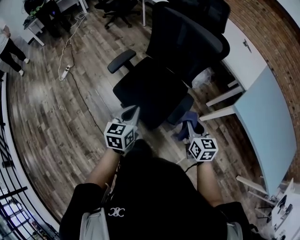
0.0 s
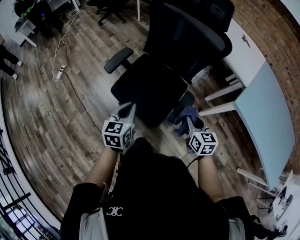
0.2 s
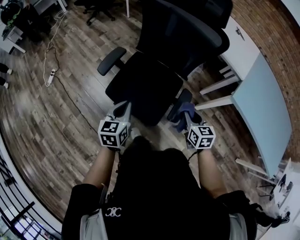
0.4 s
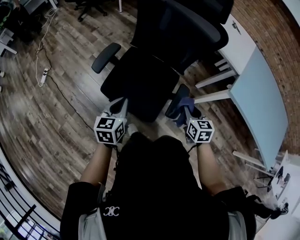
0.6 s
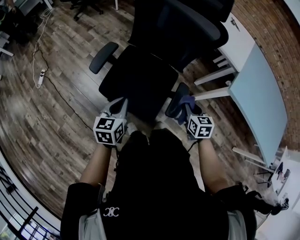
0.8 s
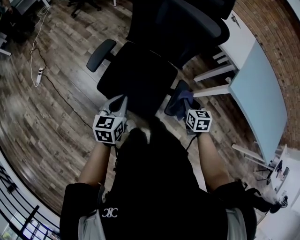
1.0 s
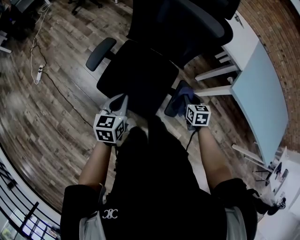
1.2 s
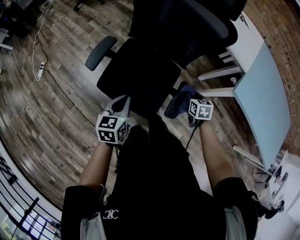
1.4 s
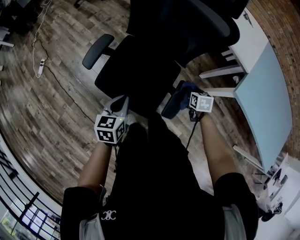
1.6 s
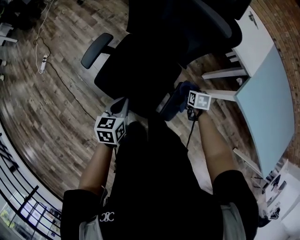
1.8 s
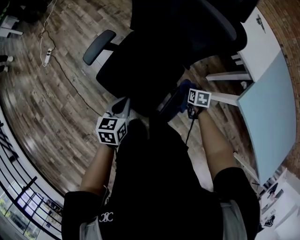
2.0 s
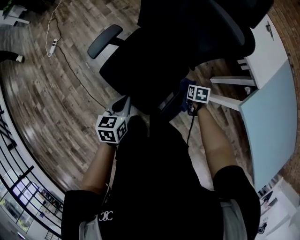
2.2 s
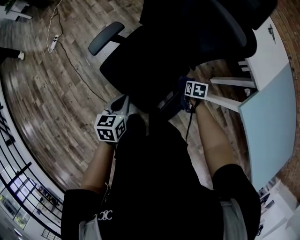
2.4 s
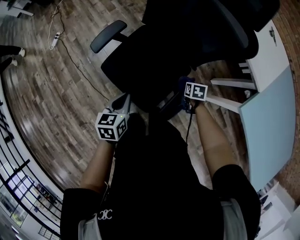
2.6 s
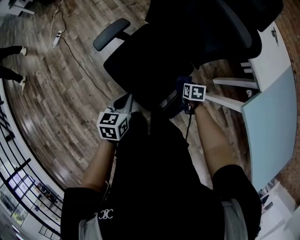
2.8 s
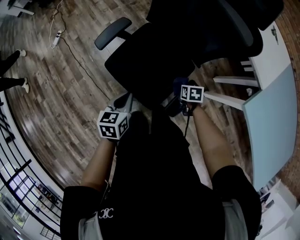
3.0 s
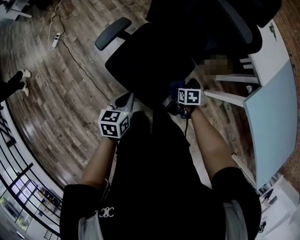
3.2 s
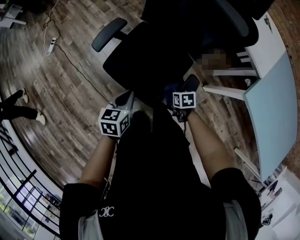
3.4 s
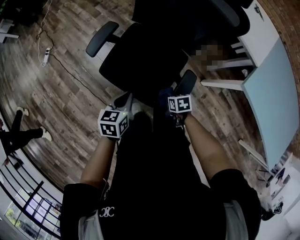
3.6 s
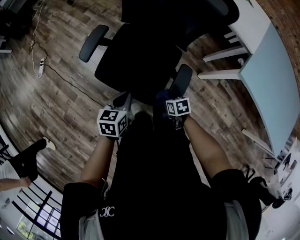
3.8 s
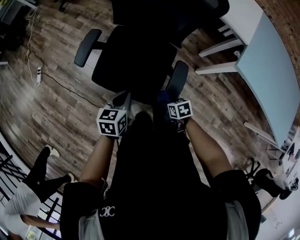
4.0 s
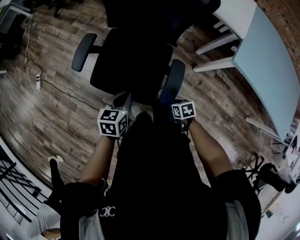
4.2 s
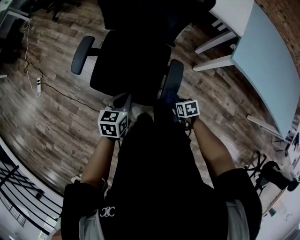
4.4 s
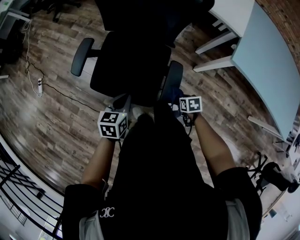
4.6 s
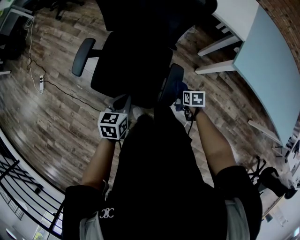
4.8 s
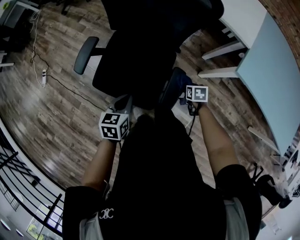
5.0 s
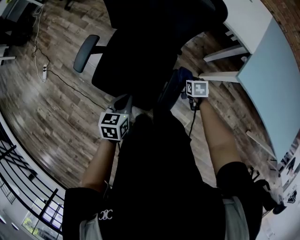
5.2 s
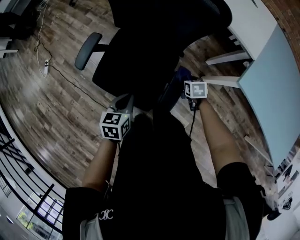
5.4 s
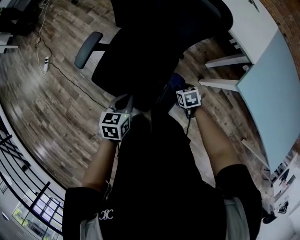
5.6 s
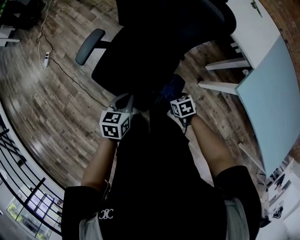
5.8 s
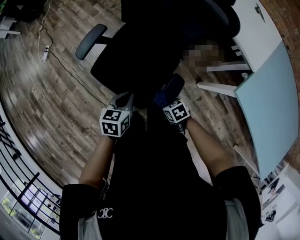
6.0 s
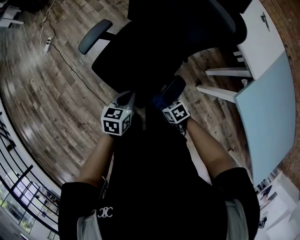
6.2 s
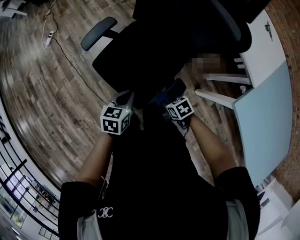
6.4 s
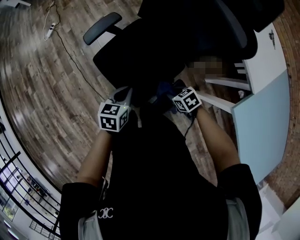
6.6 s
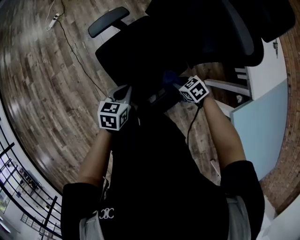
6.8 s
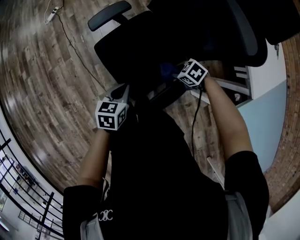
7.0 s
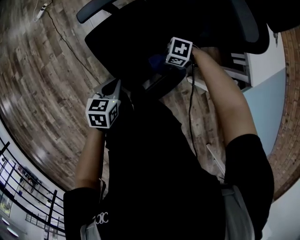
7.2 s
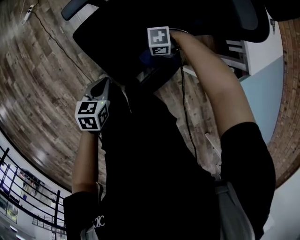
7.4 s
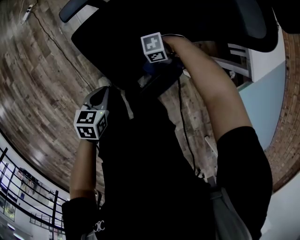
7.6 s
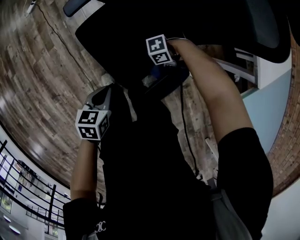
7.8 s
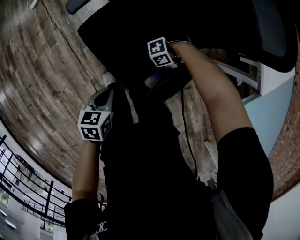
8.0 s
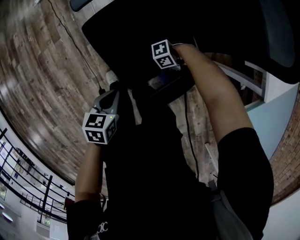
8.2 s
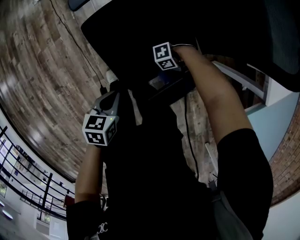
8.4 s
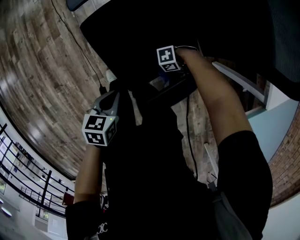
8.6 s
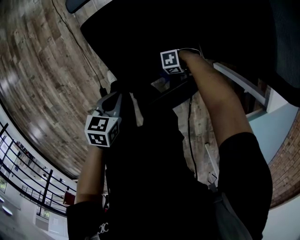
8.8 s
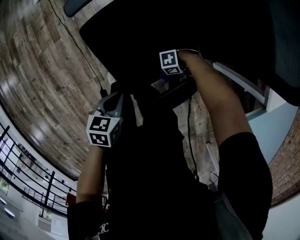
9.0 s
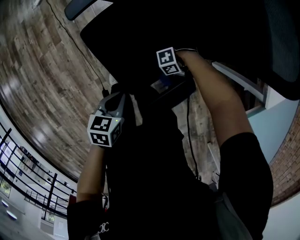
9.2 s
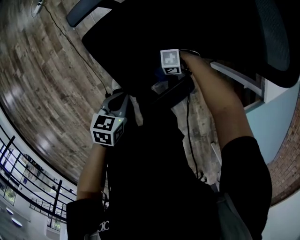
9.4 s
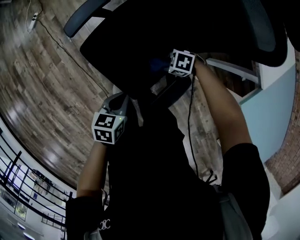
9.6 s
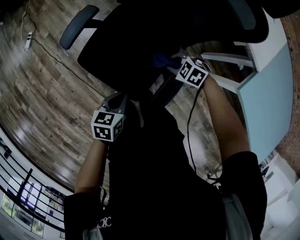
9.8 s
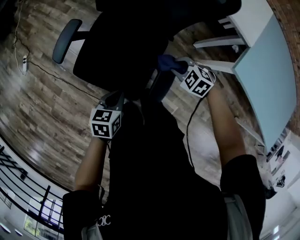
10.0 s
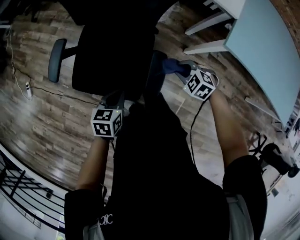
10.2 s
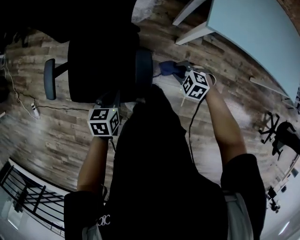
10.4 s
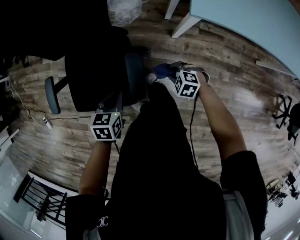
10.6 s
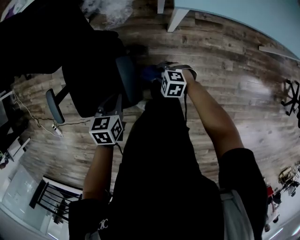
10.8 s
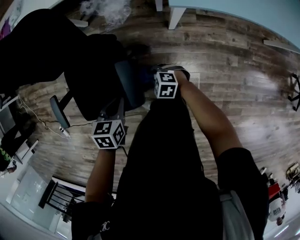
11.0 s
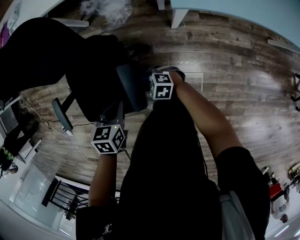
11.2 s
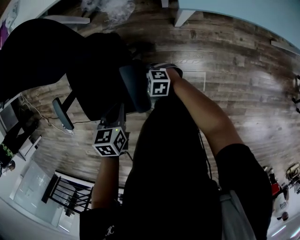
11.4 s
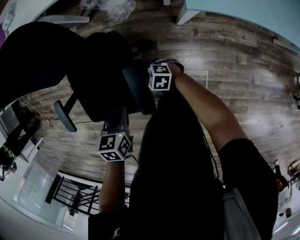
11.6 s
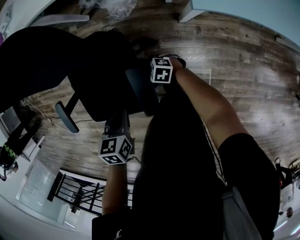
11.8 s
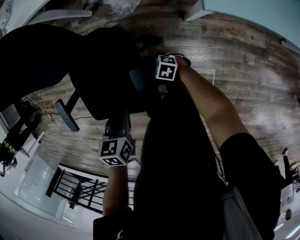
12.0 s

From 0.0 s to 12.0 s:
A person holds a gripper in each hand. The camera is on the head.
From 0.0 s to 1.6 s: The right gripper goes about 25 cm downward and forward, and angles its fingers downward, by about 30 degrees. The left gripper moves forward and downward, roughly 10 cm.
From 1.6 s to 3.0 s: The right gripper moves to the left and downward, some 10 cm.
From 3.0 s to 4.4 s: The right gripper travels backward by about 20 cm, while the left gripper turns by roughly 30 degrees.
From 4.4 s to 6.0 s: The right gripper changes its angle by some 30 degrees.
From 6.0 s to 7.6 s: The right gripper changes its angle by approximately 90 degrees; the left gripper moves some 10 cm.
From 7.6 s to 9.0 s: The right gripper moves downward, some 15 cm. Meanwhile the left gripper heads downward, covering about 5 cm.
From 9.0 s to 10.4 s: The right gripper travels upward by roughly 20 cm, and turns by some 100 degrees. Meanwhile the left gripper travels upward by roughly 10 cm, and twists roughly 40 degrees clockwise, seen from behind.
From 10.4 s to 12.0 s: The right gripper goes approximately 20 cm downward, forward and to the left, and changes its angle by roughly 30 degrees.

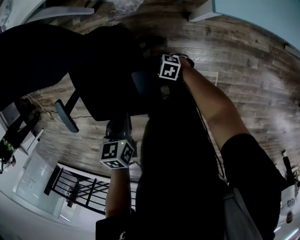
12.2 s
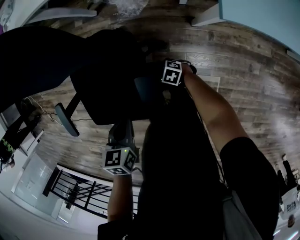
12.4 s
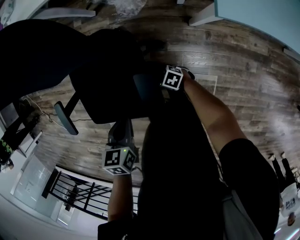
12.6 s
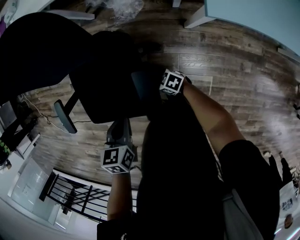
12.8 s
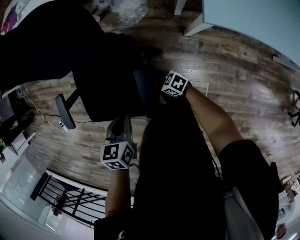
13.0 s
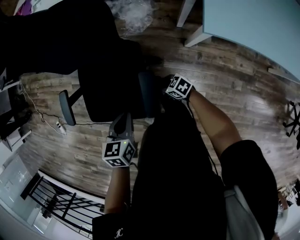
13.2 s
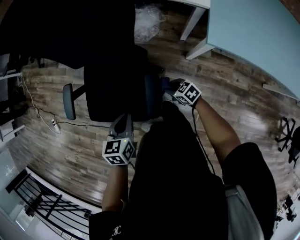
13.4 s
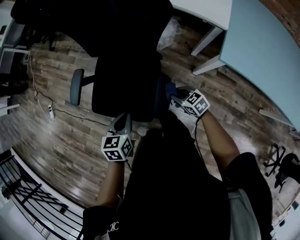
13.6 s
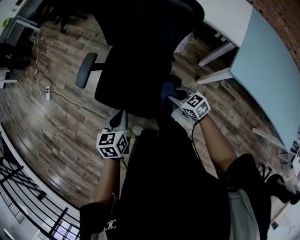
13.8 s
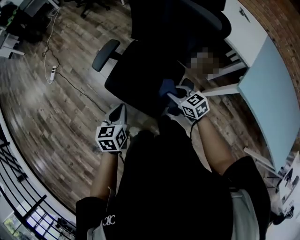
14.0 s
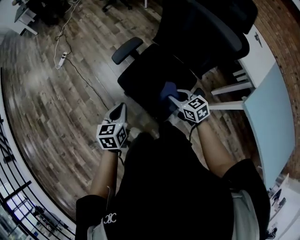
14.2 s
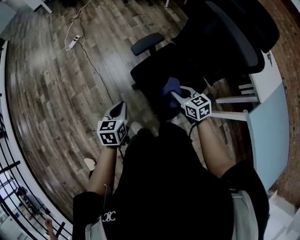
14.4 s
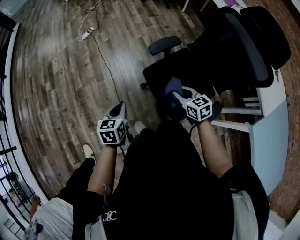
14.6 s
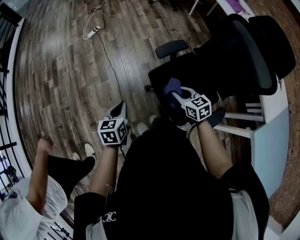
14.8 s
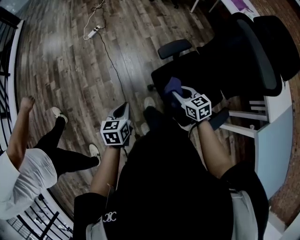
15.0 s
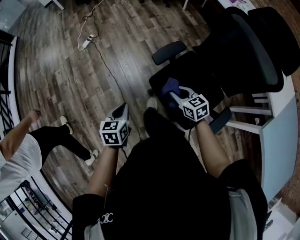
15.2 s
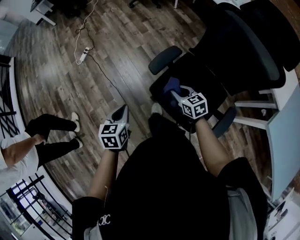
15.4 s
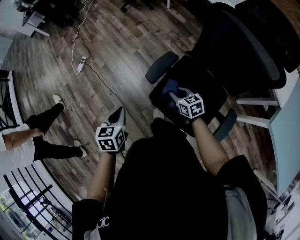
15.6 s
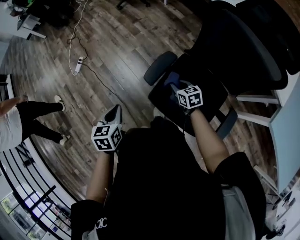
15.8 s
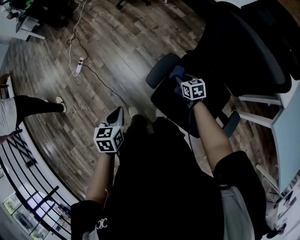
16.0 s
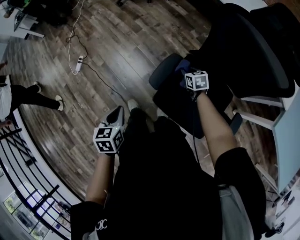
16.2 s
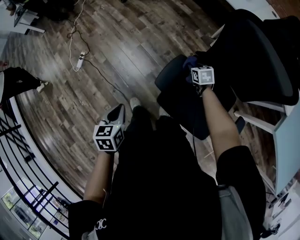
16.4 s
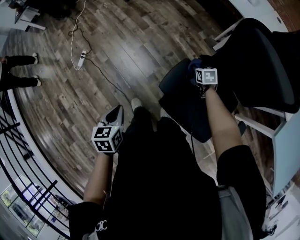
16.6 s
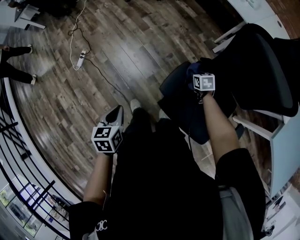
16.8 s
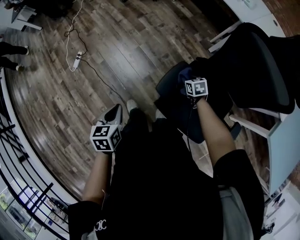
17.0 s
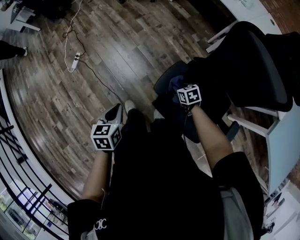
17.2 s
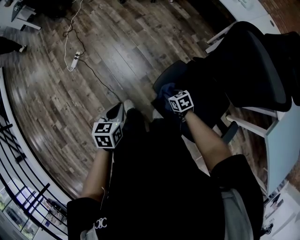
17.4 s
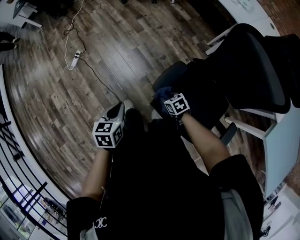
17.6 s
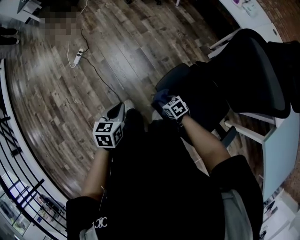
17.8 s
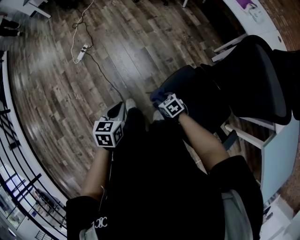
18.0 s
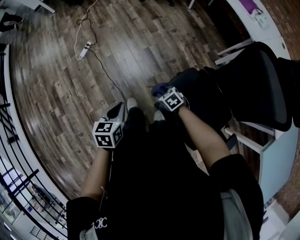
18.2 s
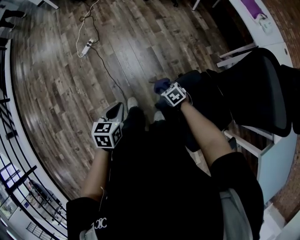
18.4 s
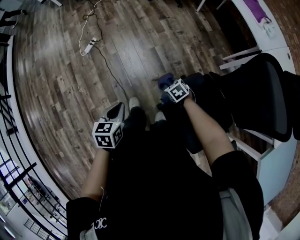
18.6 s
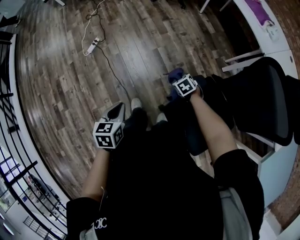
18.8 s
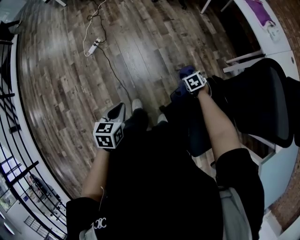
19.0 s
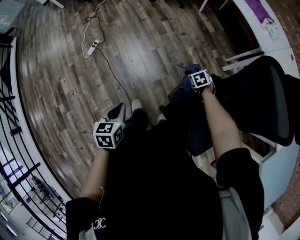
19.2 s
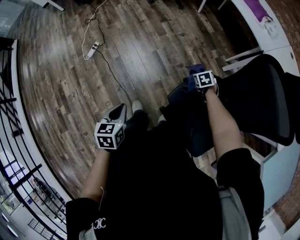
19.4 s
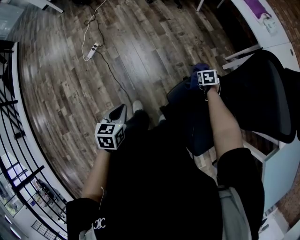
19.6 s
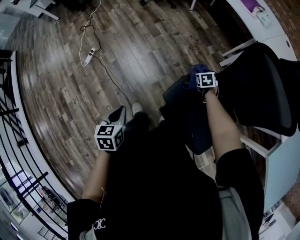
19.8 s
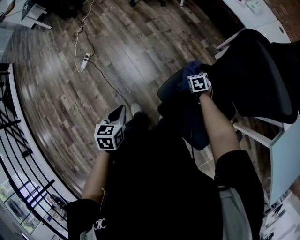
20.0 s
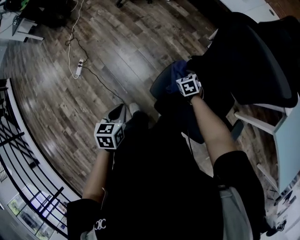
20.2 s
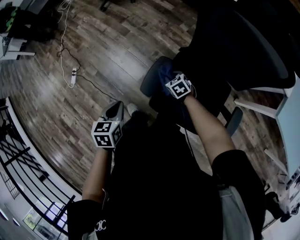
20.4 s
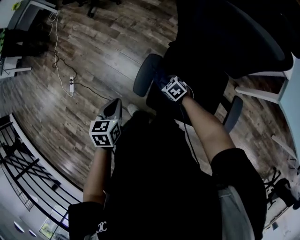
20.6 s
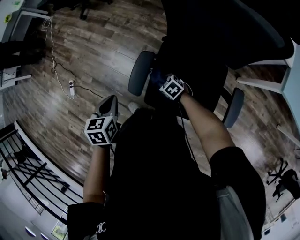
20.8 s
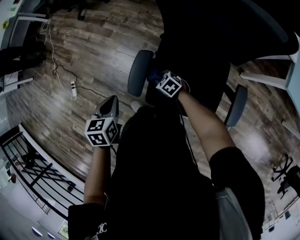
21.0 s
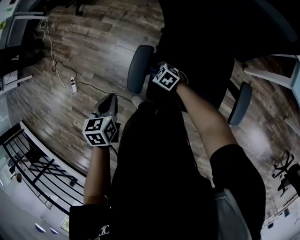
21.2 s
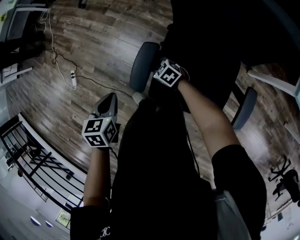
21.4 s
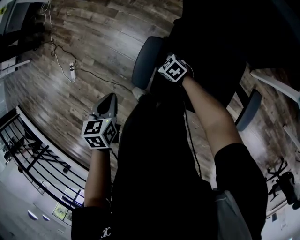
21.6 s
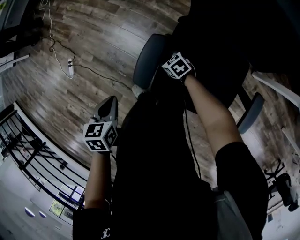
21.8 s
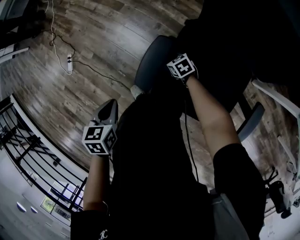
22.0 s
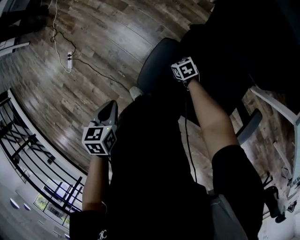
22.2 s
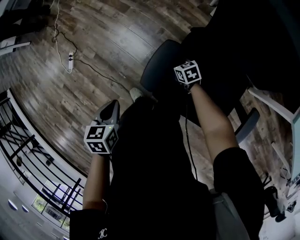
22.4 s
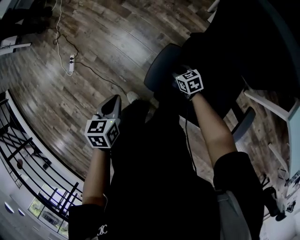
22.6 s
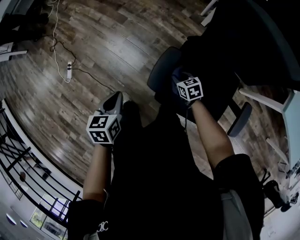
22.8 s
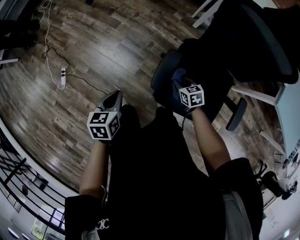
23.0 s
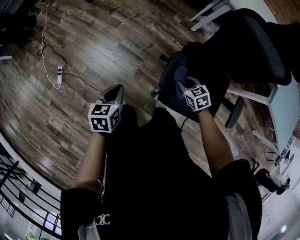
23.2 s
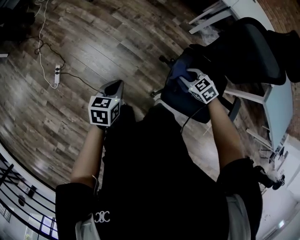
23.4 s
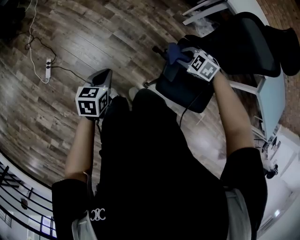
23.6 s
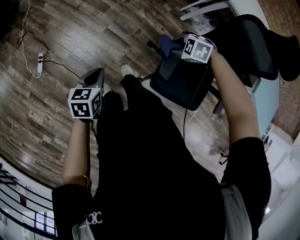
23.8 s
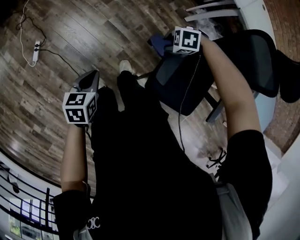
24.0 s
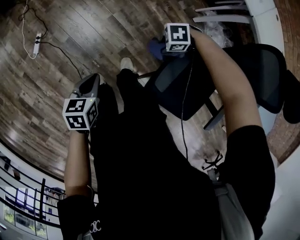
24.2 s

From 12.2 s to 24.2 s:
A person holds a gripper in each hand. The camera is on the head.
From 12.2 s to 13.8 s: The right gripper travels upward by roughly 30 cm, while the left gripper shifts some 15 cm to the left and upward, and swivels some 30 degrees.
From 13.8 s to 15.2 s: The right gripper ends up roughly 35 cm from where it was. Meanwhile the left gripper ends up about 35 cm from where it was, and changes its angle by about 30 degrees.
From 15.2 s to 16.6 s: The left gripper heads forward, covering roughly 20 cm. Meanwhile the right gripper moves forward, to the right and downward, some 35 cm, and changes its angle by about 40 degrees.
From 16.6 s to 18.2 s: The right gripper changes place by approximately 25 cm, and swivels approximately 40 degrees.
From 18.2 s to 19.8 s: The right gripper shifts by some 25 cm, and swivels about 40 degrees.
From 19.8 s to 21.2 s: The right gripper shifts about 15 cm backward, to the left and downward, and swivels about 20 degrees, while the left gripper shifts some 15 cm to the right, and turns by roughly 30 degrees.
From 21.2 s to 22.6 s: The left gripper moves to the left, roughly 10 cm. Meanwhile the right gripper goes downward and returns, some 10 cm each way.
From 22.6 s to 24.2 s: The right gripper changes place by some 15 cm, and changes its angle by some 90 degrees. Meanwhile the left gripper shifts by roughly 15 cm.
